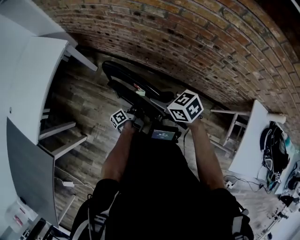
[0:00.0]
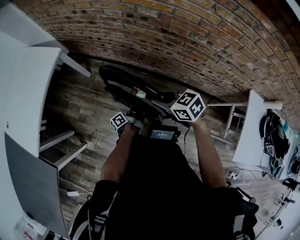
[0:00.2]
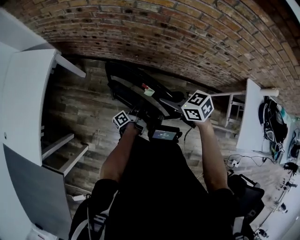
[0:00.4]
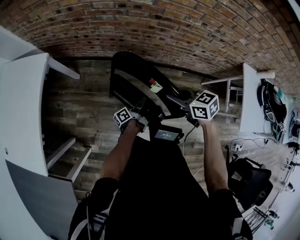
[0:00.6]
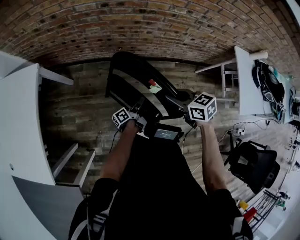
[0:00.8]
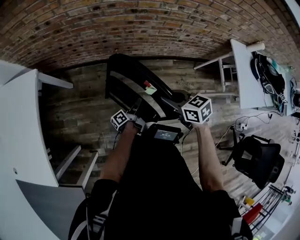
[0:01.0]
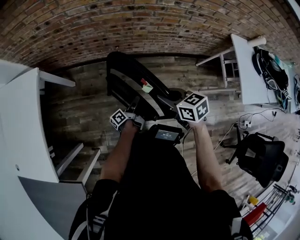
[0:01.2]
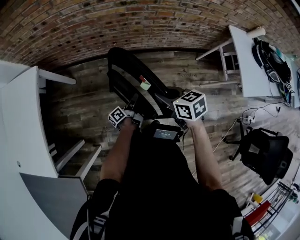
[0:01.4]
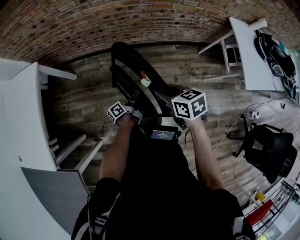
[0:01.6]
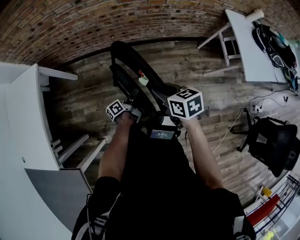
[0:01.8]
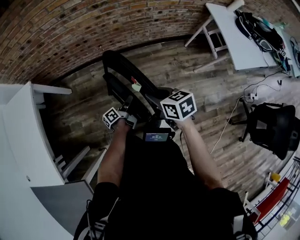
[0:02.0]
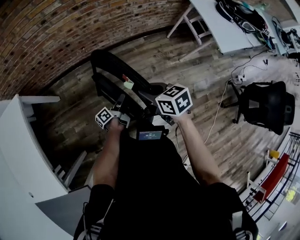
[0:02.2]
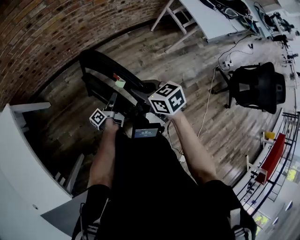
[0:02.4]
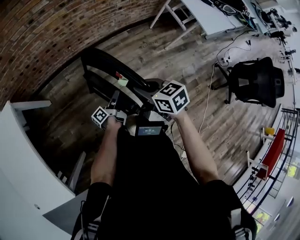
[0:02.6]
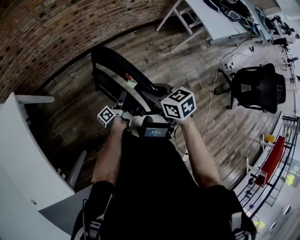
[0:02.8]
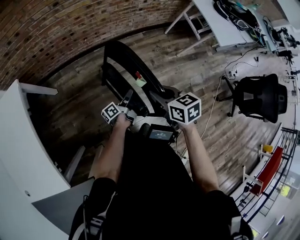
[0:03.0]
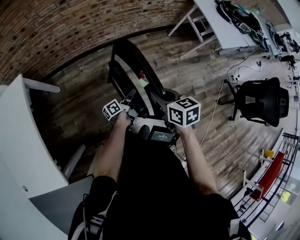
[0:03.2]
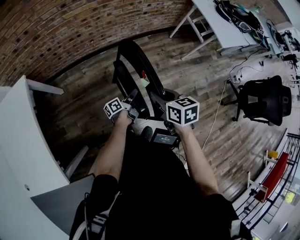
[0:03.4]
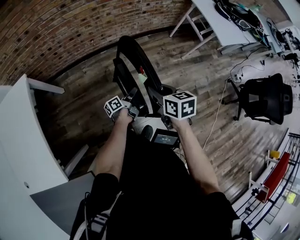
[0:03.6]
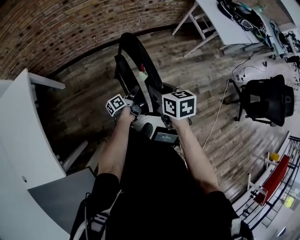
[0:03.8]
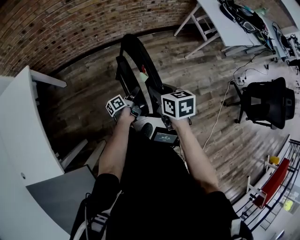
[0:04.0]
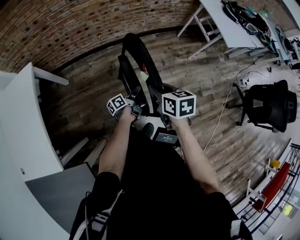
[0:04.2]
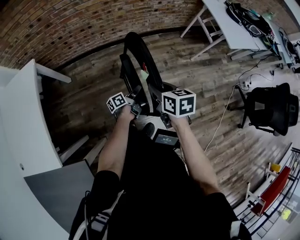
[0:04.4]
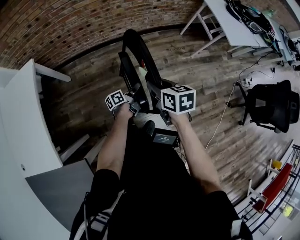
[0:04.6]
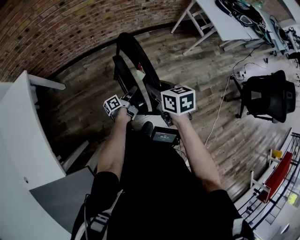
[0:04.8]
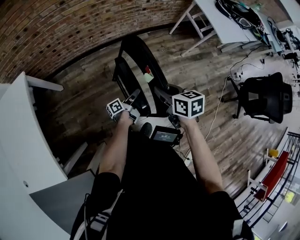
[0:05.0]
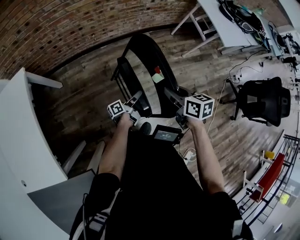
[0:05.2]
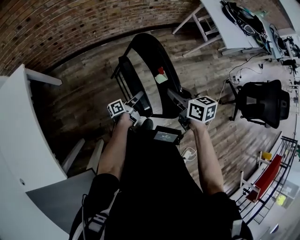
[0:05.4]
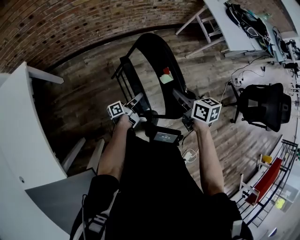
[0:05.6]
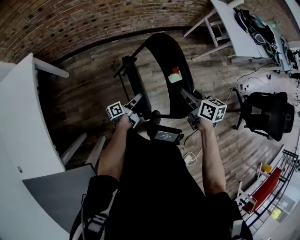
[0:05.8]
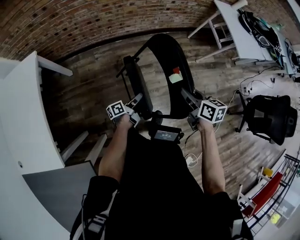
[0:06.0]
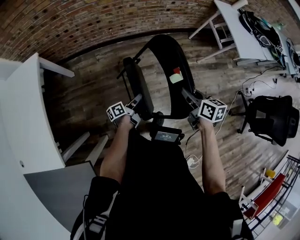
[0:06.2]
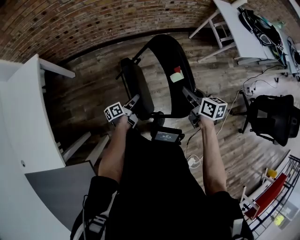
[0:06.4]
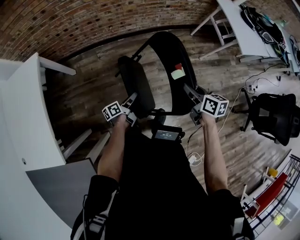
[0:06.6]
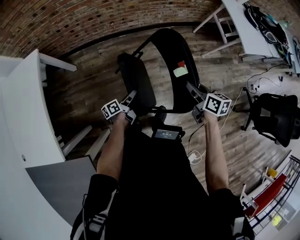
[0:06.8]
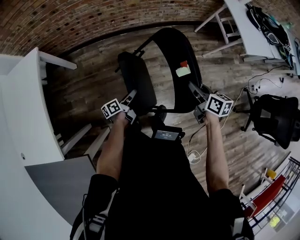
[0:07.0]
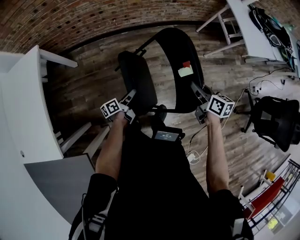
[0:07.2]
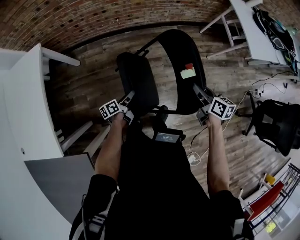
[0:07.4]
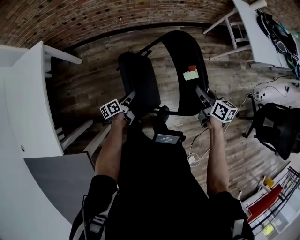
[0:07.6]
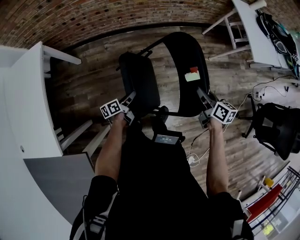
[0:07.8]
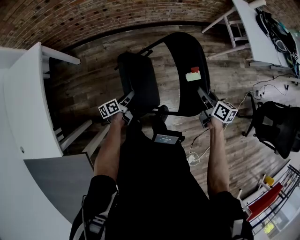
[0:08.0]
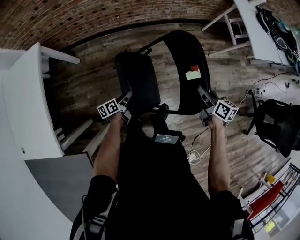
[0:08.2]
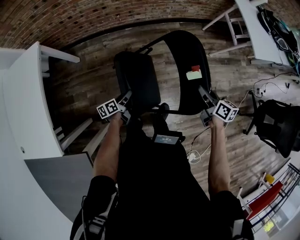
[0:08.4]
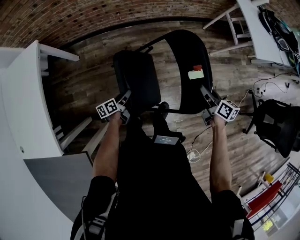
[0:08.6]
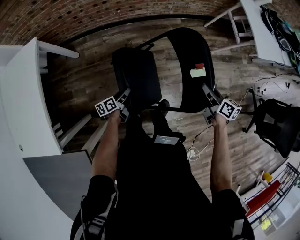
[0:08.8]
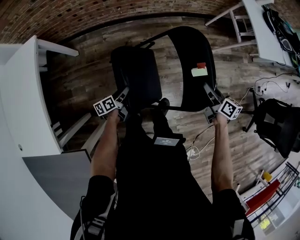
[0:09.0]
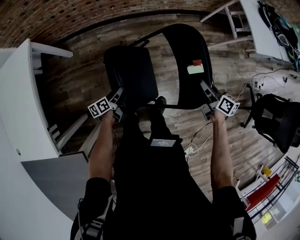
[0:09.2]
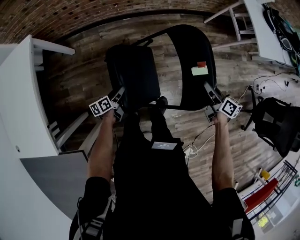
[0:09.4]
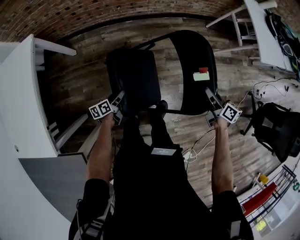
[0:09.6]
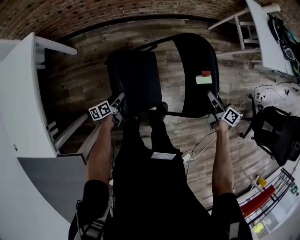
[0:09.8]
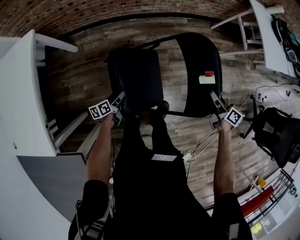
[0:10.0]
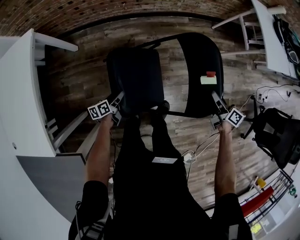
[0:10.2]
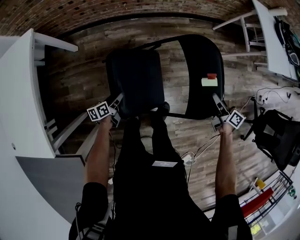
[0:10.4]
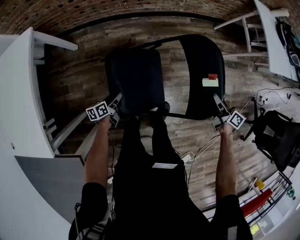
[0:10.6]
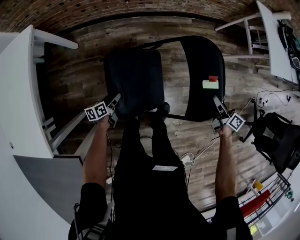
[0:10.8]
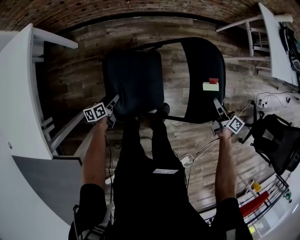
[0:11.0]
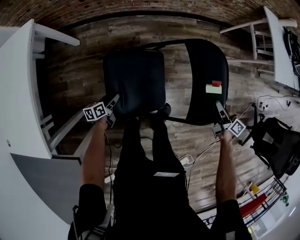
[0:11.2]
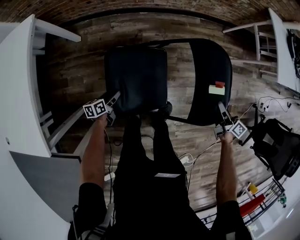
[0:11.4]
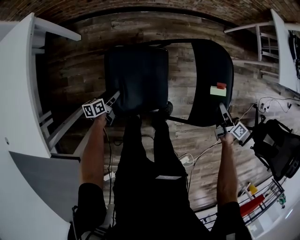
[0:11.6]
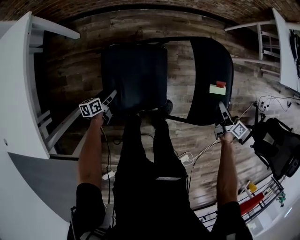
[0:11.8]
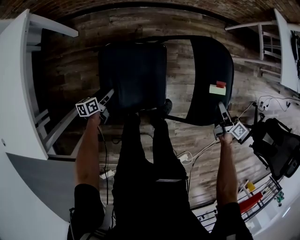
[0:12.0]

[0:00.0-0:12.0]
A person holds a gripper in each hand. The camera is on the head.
0:00.0 to 0:01.6: The right gripper changes place by roughly 20 cm, and changes its angle by some 40 degrees.
0:01.6 to 0:03.0: The right gripper shifts by roughly 15 cm, and changes its angle by some 20 degrees.
0:04.4 to 0:06.0: The right gripper moves about 10 cm.
0:06.0 to 0:07.6: The right gripper changes place by about 10 cm.
0:07.6 to 0:09.0: The right gripper changes place by roughly 5 cm.
0:09.0 to 0:10.4: The right gripper shifts about 5 cm downward.

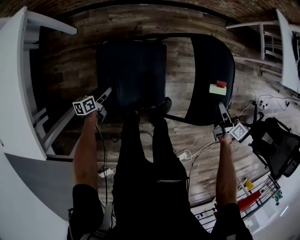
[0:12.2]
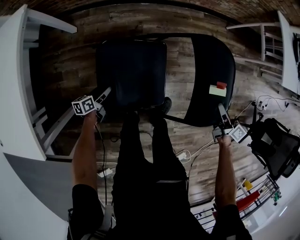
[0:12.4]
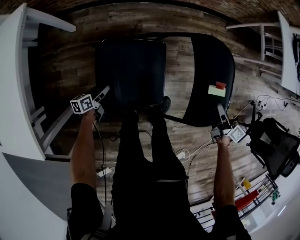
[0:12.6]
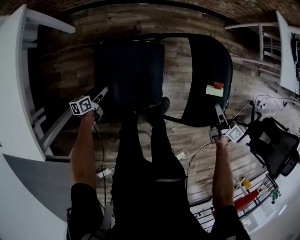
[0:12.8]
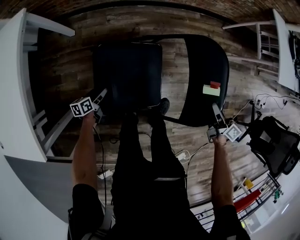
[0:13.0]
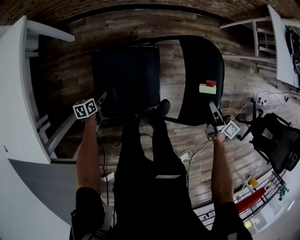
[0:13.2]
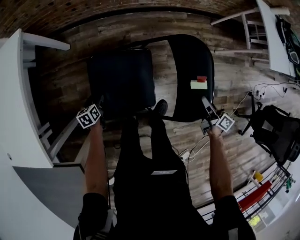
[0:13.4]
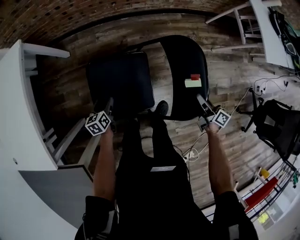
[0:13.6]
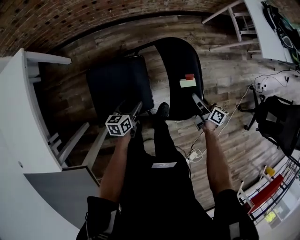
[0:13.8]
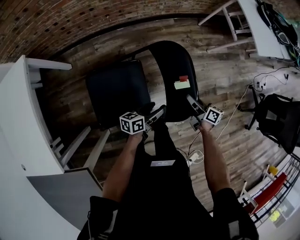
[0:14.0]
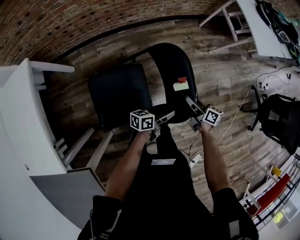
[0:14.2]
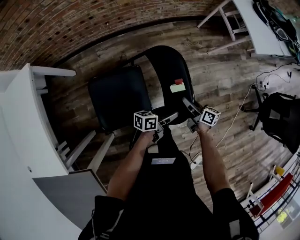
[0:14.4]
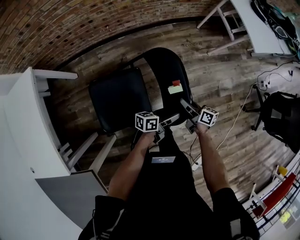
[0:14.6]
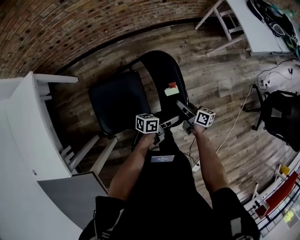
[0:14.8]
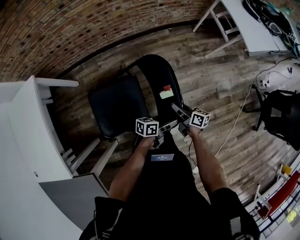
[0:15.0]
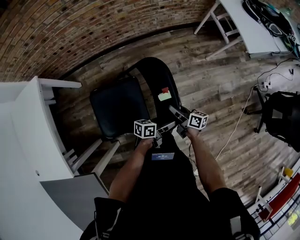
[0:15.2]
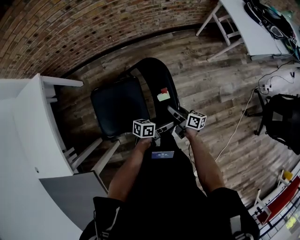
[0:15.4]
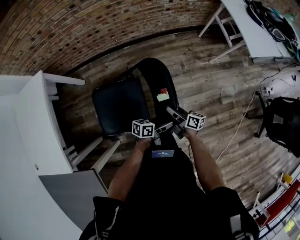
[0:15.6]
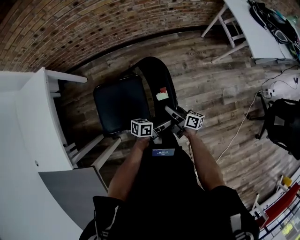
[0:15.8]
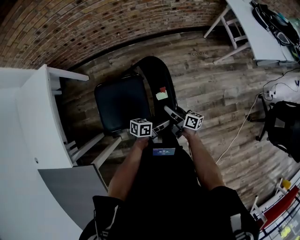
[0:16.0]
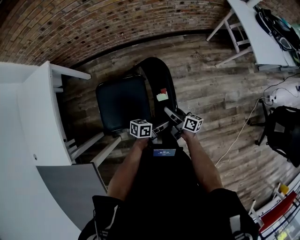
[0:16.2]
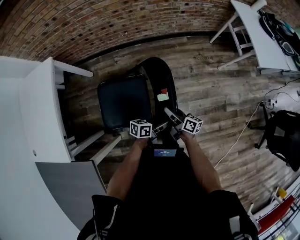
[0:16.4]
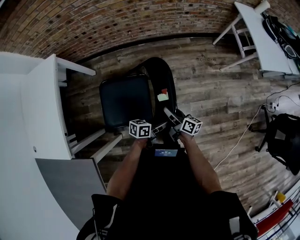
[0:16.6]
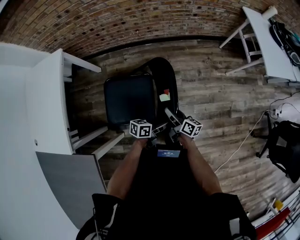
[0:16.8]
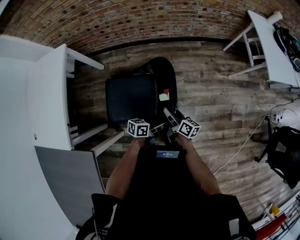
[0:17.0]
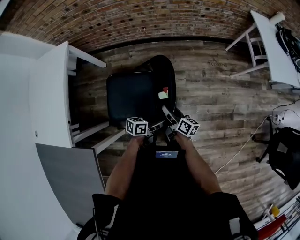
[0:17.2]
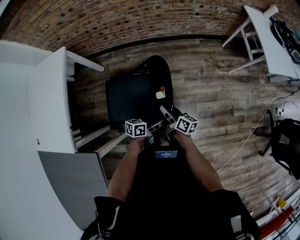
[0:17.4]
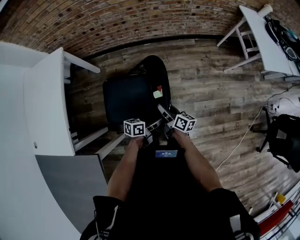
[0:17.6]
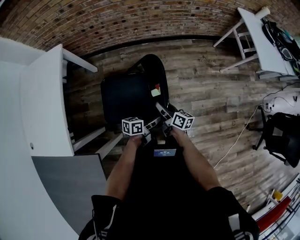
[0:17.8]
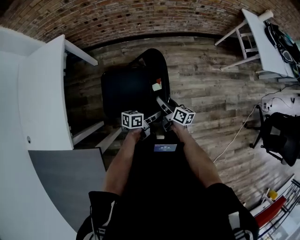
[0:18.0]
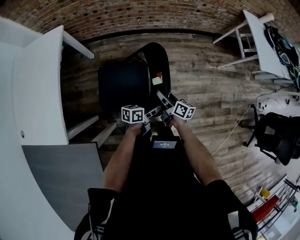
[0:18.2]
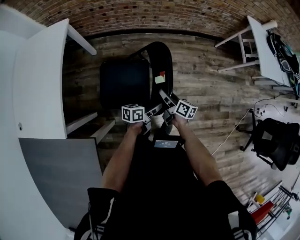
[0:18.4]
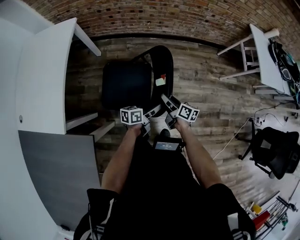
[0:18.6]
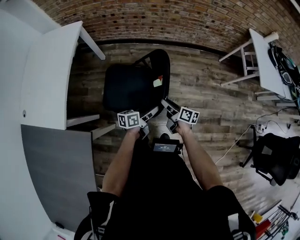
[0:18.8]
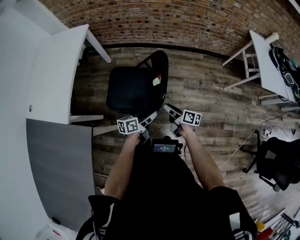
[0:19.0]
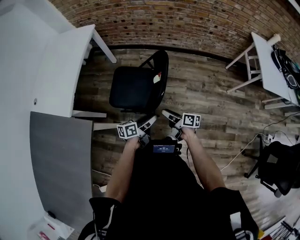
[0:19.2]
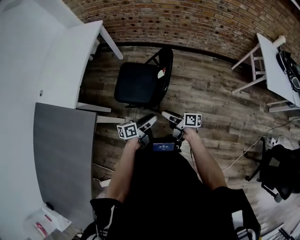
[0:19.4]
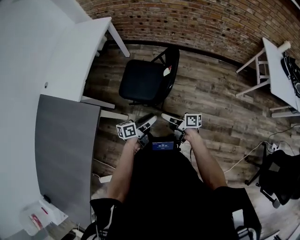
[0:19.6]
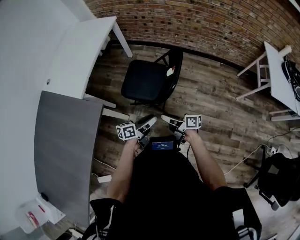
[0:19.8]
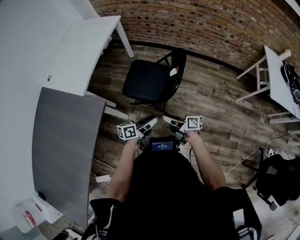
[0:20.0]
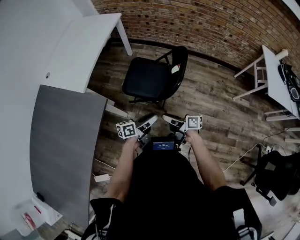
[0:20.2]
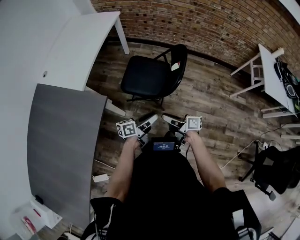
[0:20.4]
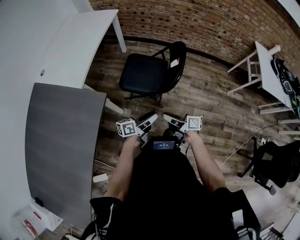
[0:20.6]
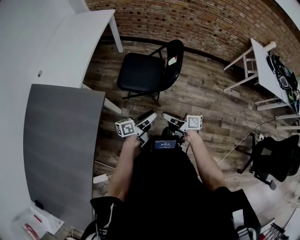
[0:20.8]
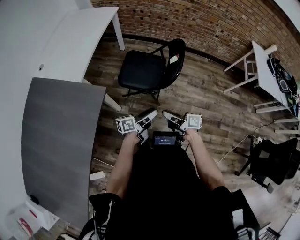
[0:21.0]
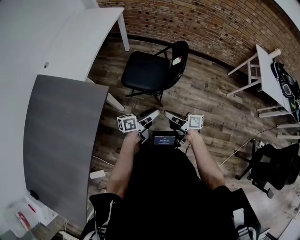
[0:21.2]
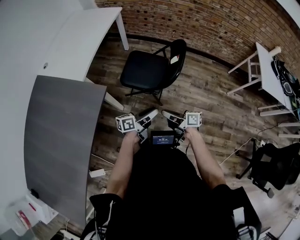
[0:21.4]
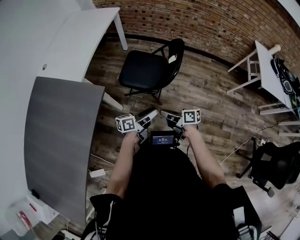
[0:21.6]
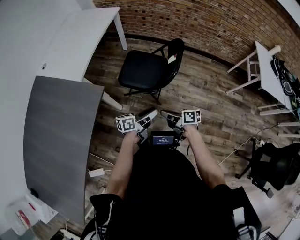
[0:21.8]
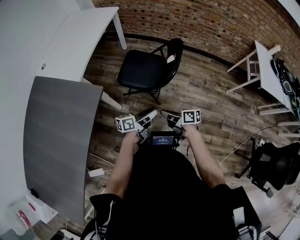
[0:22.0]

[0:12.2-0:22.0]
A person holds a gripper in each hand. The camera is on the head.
0:15.0 to 0:16.4: The right gripper moves approximately 10 cm.
0:16.4 to 0:17.8: The right gripper changes place by approximately 10 cm.
0:17.8 to 0:19.2: The right gripper changes place by about 15 cm, and swivels some 30 degrees.
0:19.2 to 0:20.6: The right gripper moves about 20 cm.
0:20.6 to 0:22.0: The right gripper closes its fingers.

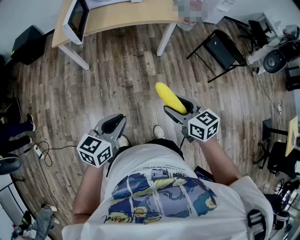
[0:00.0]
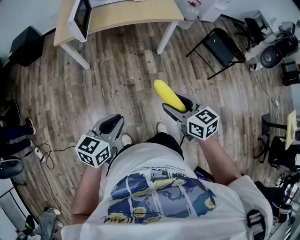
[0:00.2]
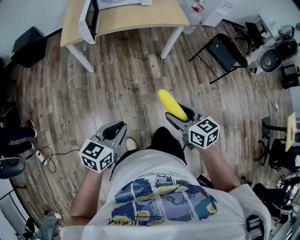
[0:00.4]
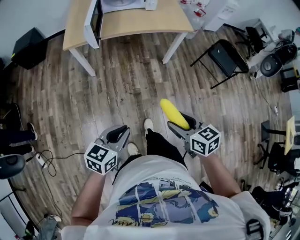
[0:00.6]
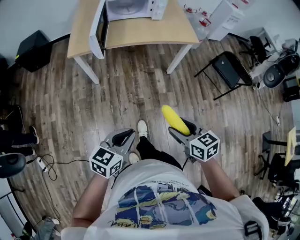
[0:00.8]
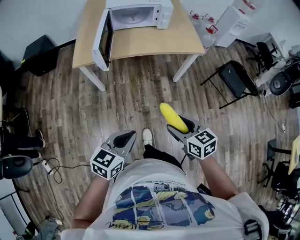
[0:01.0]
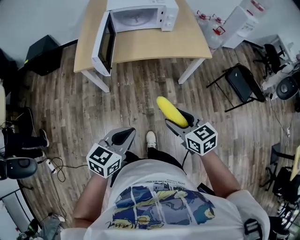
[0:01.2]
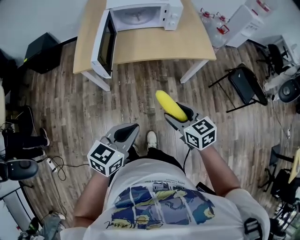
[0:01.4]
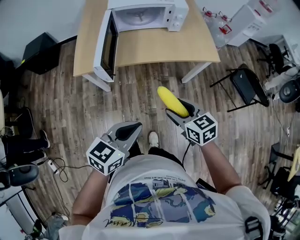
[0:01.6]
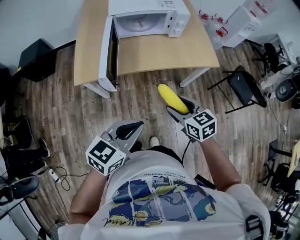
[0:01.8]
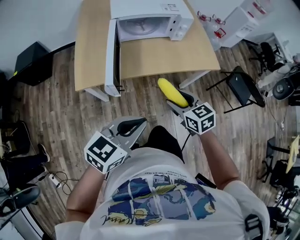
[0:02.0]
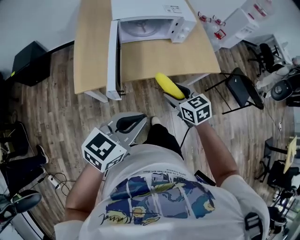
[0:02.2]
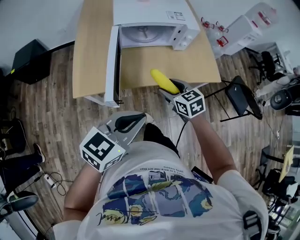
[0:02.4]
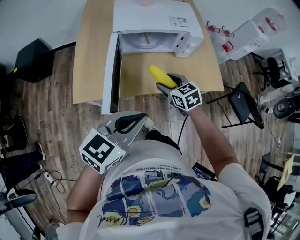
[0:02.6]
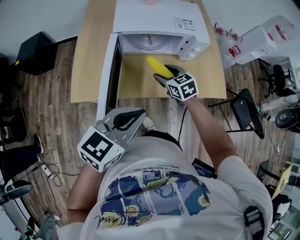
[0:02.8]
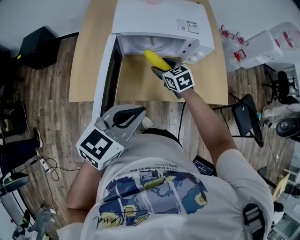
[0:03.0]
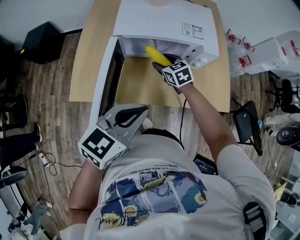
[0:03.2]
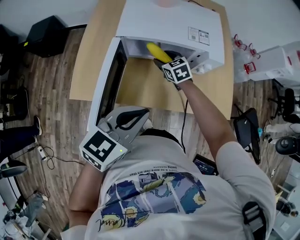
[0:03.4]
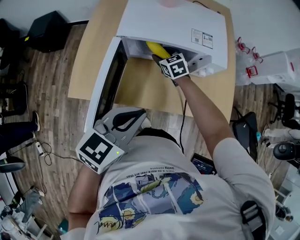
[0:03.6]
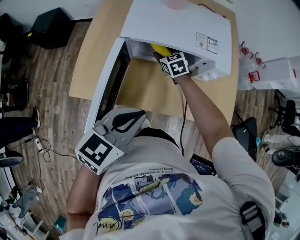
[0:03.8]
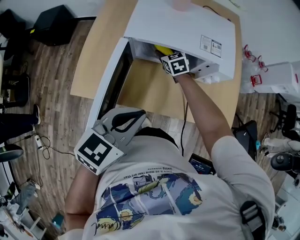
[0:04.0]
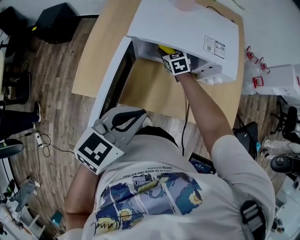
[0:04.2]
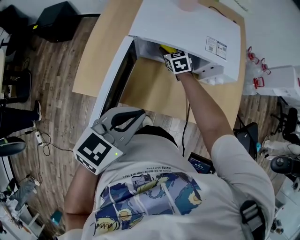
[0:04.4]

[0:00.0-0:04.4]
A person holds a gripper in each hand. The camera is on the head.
0:00.0 to 0:01.4: The grippers both shift forward and to the left by about 30 cm.
0:01.4 to 0:03.0: Both grippers travel together forward, approximately 40 cm.
0:03.0 to 0:04.4: The right gripper travels forward by about 15 cm. The left gripper travels forward by about 5 cm.
